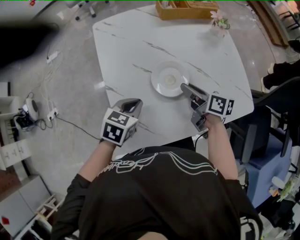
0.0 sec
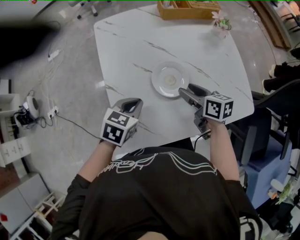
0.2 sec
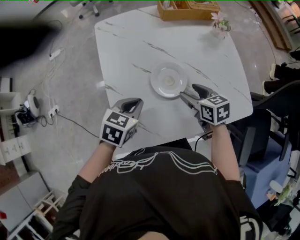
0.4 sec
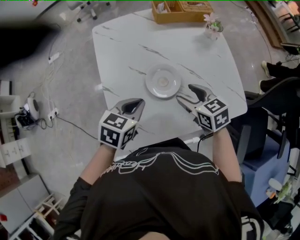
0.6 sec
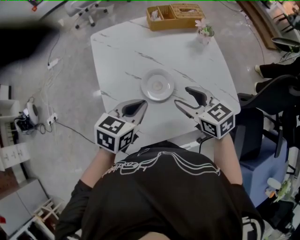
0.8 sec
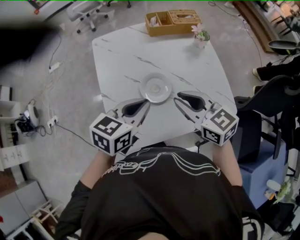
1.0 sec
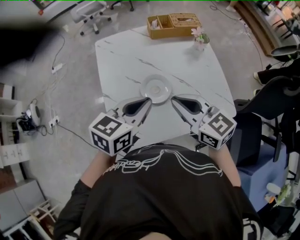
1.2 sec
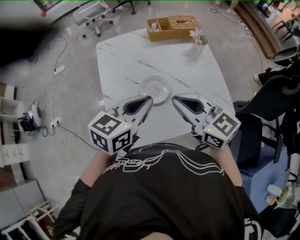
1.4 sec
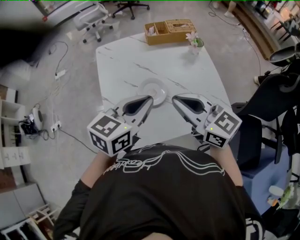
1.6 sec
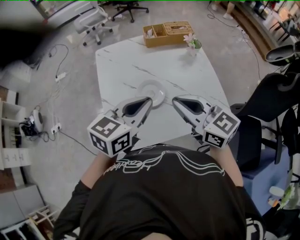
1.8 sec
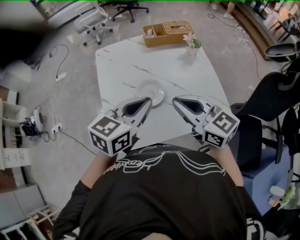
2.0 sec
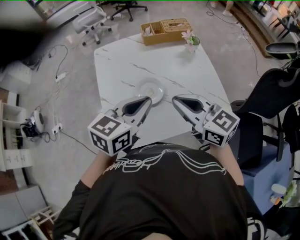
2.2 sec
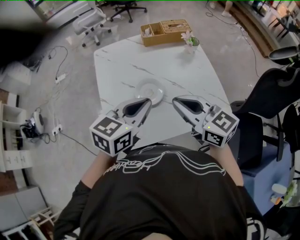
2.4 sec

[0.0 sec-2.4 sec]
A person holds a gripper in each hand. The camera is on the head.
0.0 sec to 1.2 sec: The right gripper shifts some 20 cm upward, rotates around the line of its fingers by about 50 degrees, counterclockwise from behind, and closes up; the left gripper moves upward and to the right, about 20 cm, and swivels about 30 degrees.
1.2 sec to 2.4 sec: The right gripper changes place by some 5 cm.

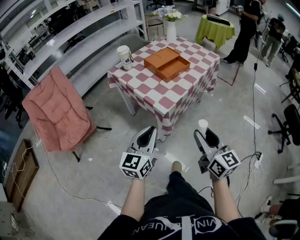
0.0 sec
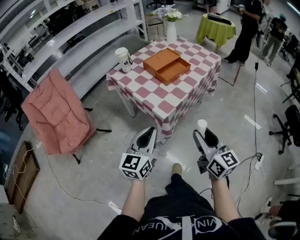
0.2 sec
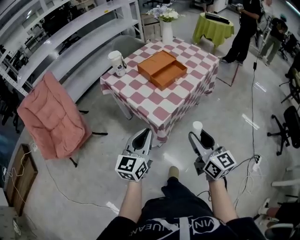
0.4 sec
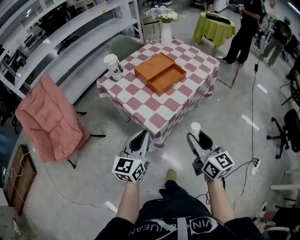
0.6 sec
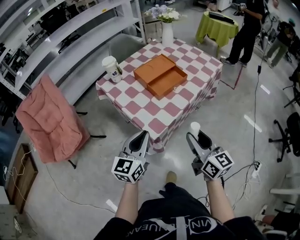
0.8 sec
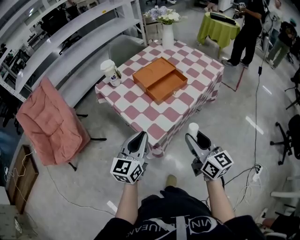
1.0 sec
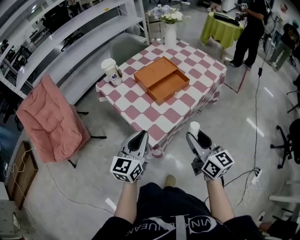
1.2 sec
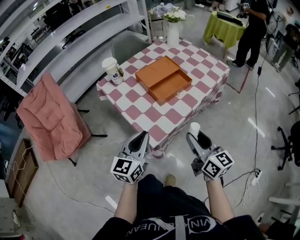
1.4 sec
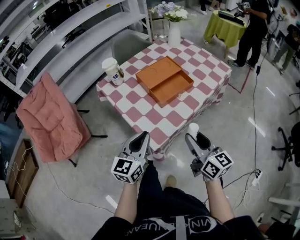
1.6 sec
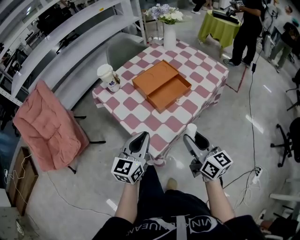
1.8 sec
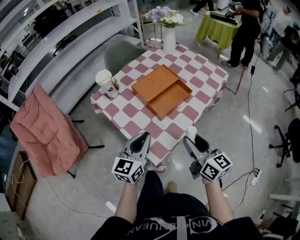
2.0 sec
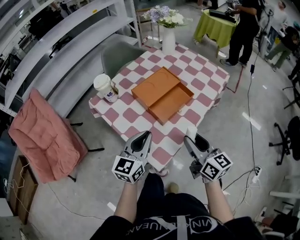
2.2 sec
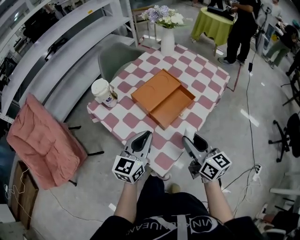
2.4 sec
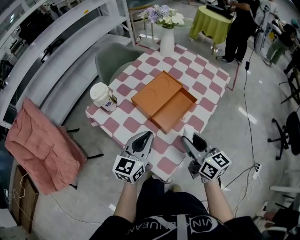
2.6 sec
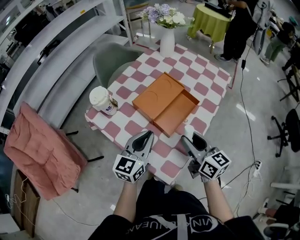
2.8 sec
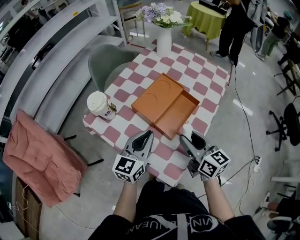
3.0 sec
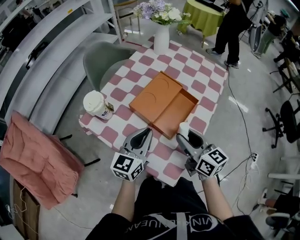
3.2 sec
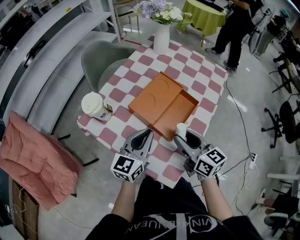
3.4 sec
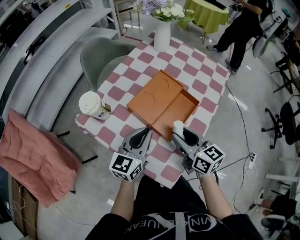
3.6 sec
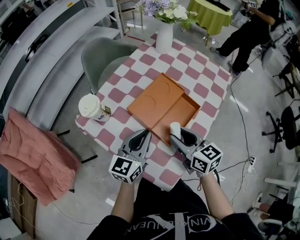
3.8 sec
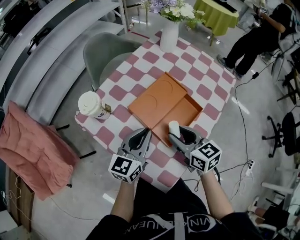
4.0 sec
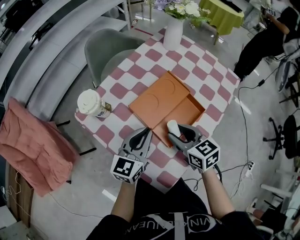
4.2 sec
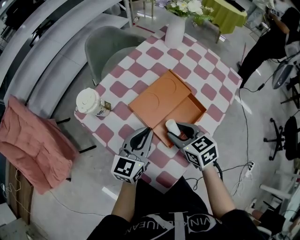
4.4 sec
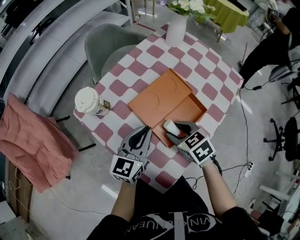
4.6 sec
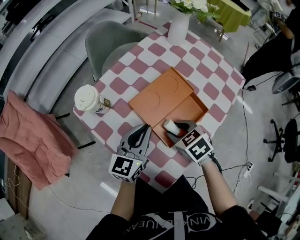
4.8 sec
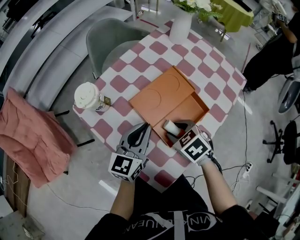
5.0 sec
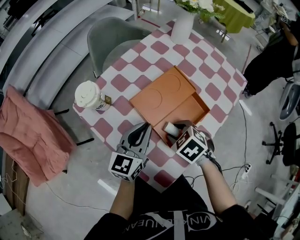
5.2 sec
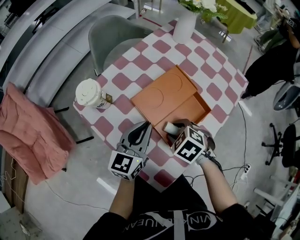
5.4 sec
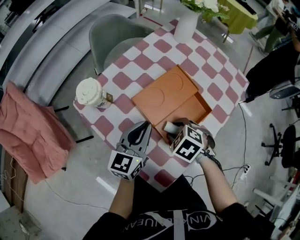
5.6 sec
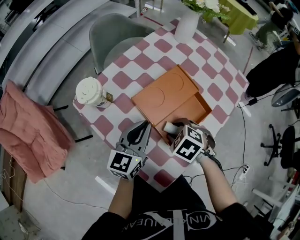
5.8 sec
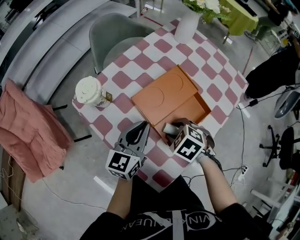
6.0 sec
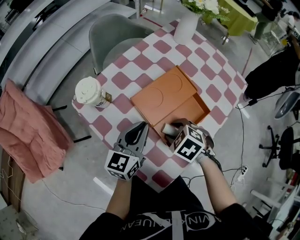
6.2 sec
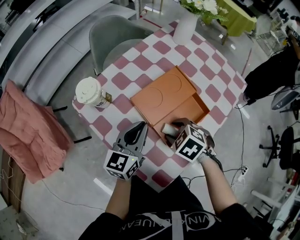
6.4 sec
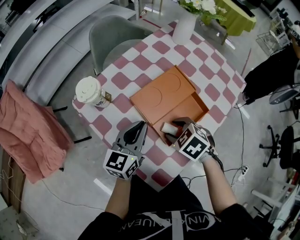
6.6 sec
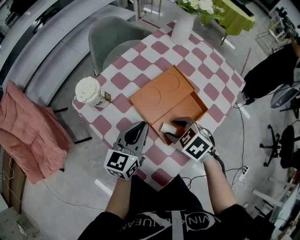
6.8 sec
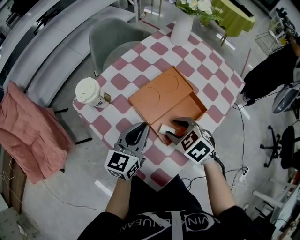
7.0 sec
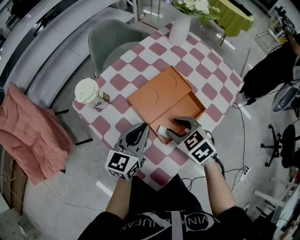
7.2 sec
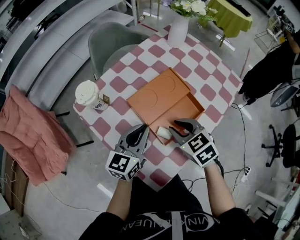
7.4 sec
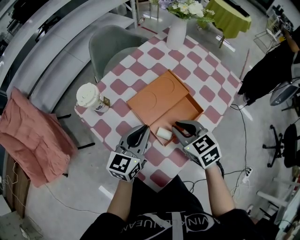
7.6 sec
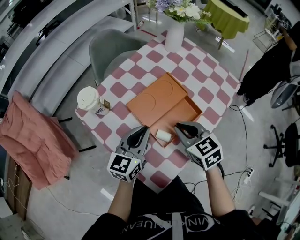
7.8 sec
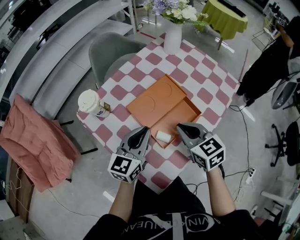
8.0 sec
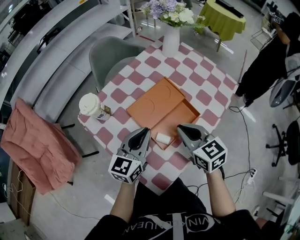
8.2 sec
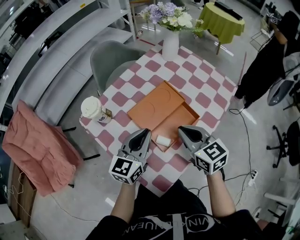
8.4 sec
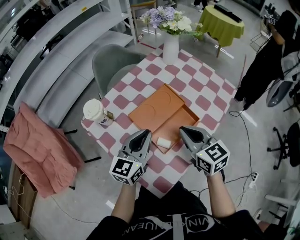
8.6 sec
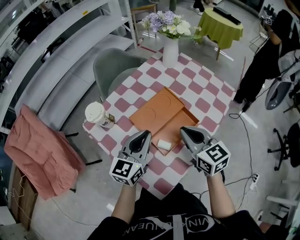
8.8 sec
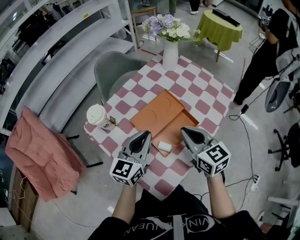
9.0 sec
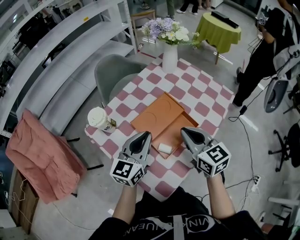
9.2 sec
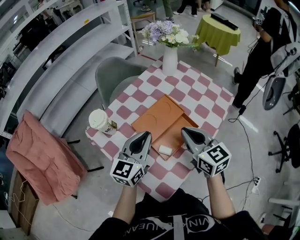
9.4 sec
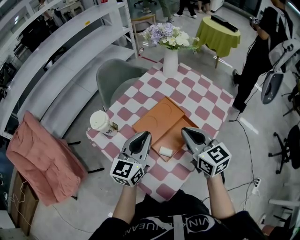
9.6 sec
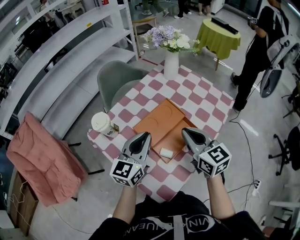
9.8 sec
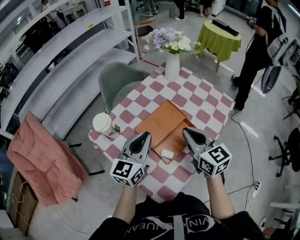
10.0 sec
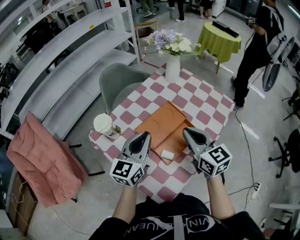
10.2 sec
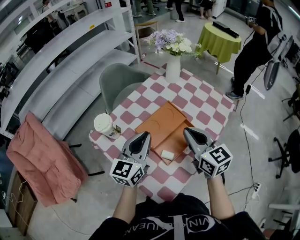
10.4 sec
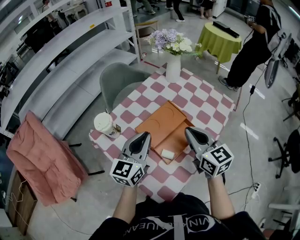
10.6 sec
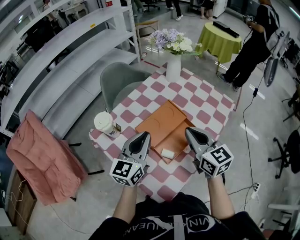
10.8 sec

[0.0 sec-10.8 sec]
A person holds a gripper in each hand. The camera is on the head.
0.0 sec to 1.6 sec: Both grippers move forward, some 20 cm.
1.6 sec to 3.0 sec: The left gripper heads forward, covering some 20 cm. Meanwhile the right gripper shifts about 20 cm forward and to the left.
3.0 sec to 4.6 sec: The right gripper goes approximately 10 cm downward and forward, and tilts its fingers about 40 degrees downward. The left gripper heads forward, covering approximately 5 cm.
4.6 sec to 6.2 sec: The right gripper changes its angle by roughly 30 degrees.
6.2 sec to 7.8 sec: The right gripper goes some 10 cm upward and to the right, tilts its fingers roughly 30 degrees upward, and closes.
7.8 sec to 9.2 sec: Both grippers move upward, approximately 10 cm. The right gripper changes its angle by about 20 degrees.
9.2 sec to 10.8 sec: The grippers make only small movements.

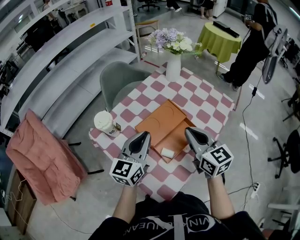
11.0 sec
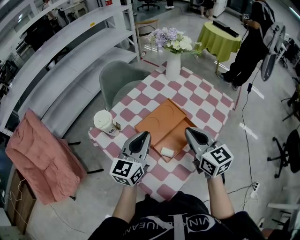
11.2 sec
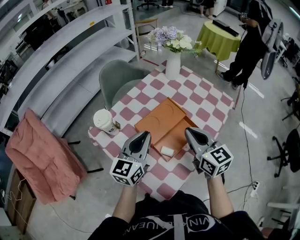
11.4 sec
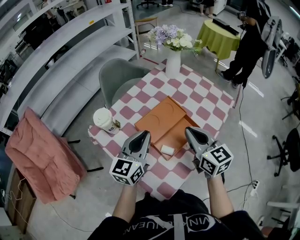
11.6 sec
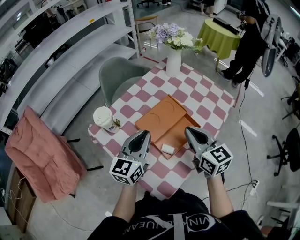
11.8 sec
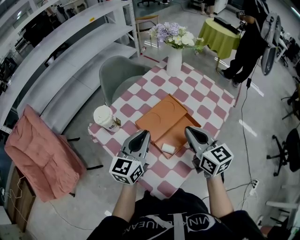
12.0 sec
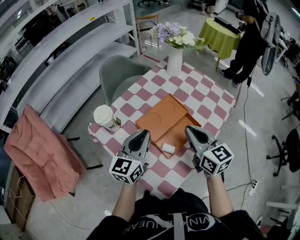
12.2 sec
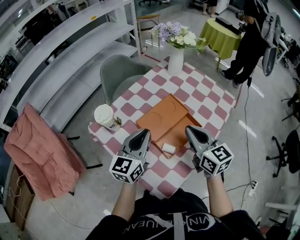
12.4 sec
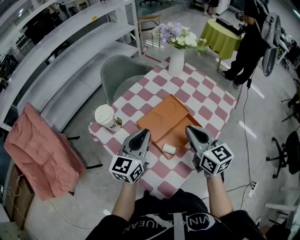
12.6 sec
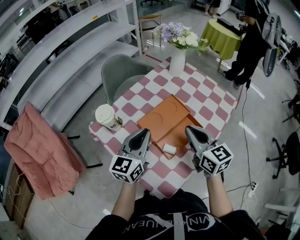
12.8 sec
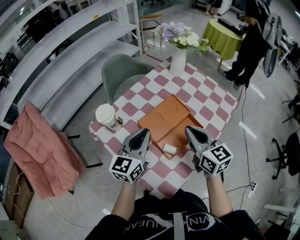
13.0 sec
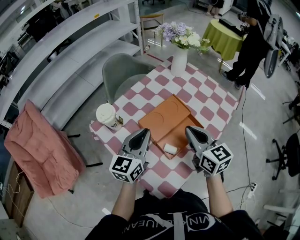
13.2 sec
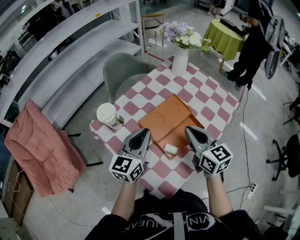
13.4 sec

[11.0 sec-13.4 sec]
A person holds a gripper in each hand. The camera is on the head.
11.0 sec to 13.4 sec: The grippers stay close to where they were, moving slightly.

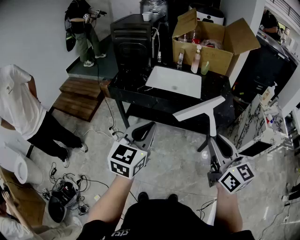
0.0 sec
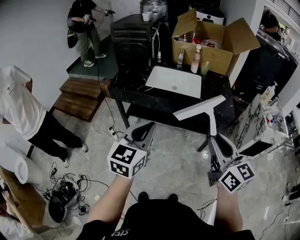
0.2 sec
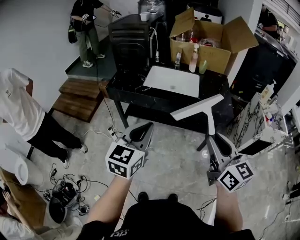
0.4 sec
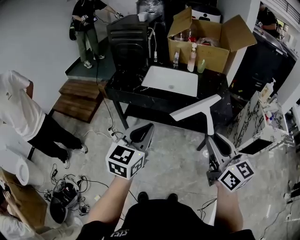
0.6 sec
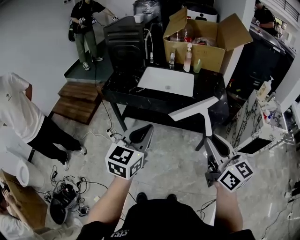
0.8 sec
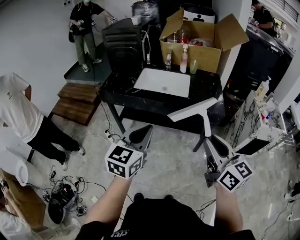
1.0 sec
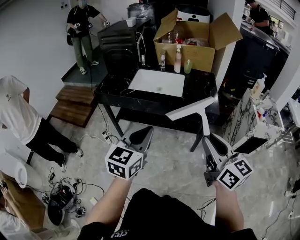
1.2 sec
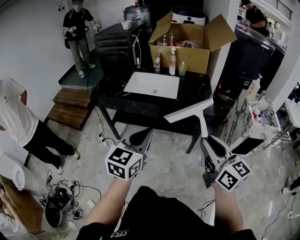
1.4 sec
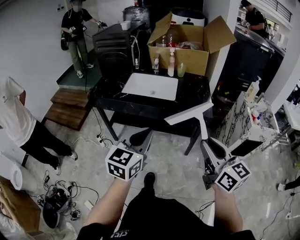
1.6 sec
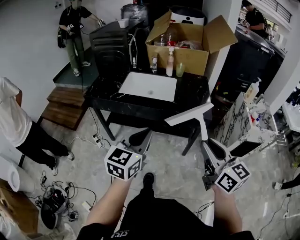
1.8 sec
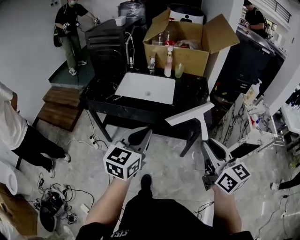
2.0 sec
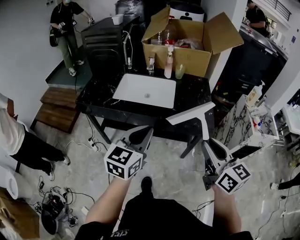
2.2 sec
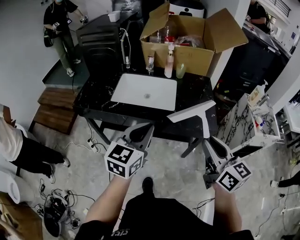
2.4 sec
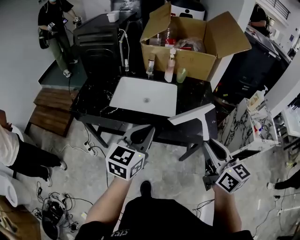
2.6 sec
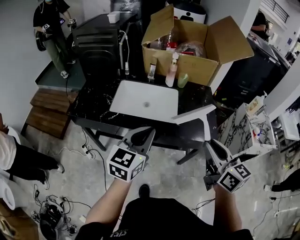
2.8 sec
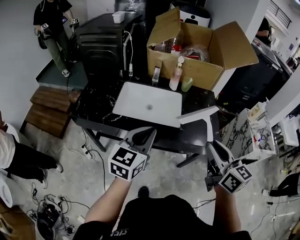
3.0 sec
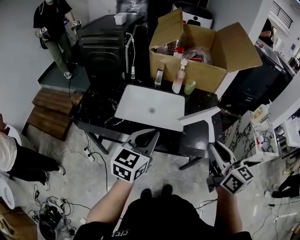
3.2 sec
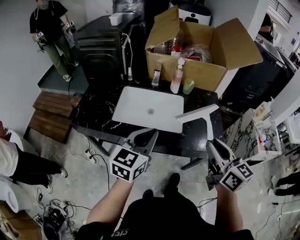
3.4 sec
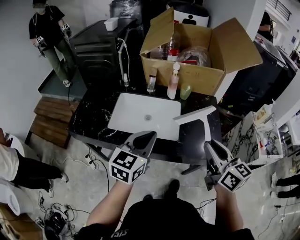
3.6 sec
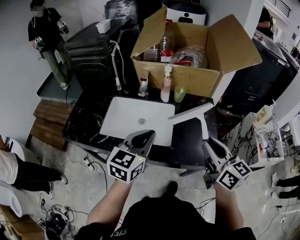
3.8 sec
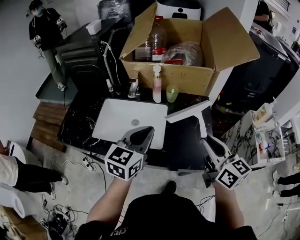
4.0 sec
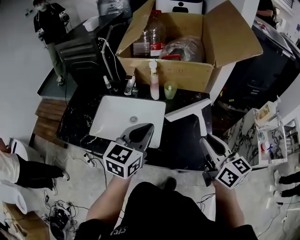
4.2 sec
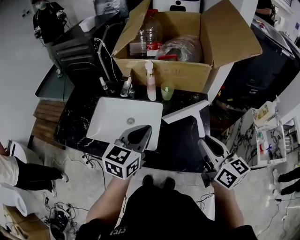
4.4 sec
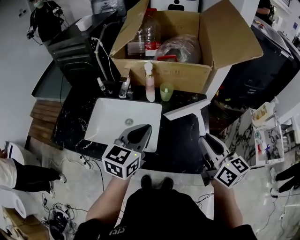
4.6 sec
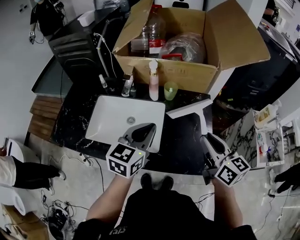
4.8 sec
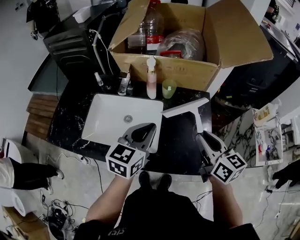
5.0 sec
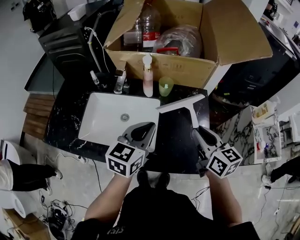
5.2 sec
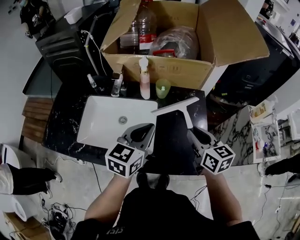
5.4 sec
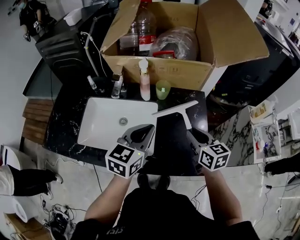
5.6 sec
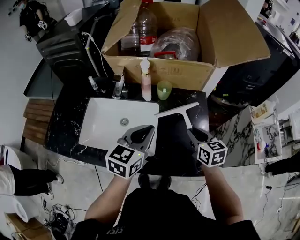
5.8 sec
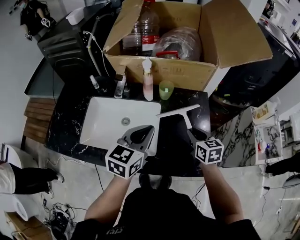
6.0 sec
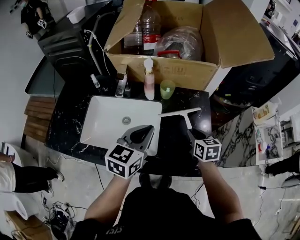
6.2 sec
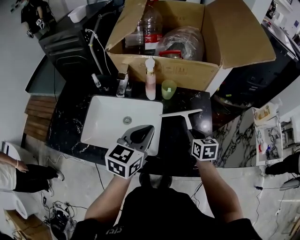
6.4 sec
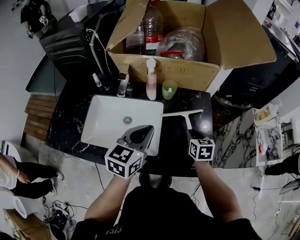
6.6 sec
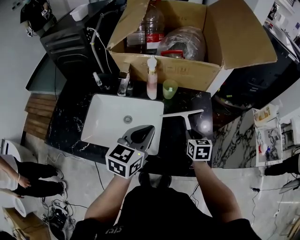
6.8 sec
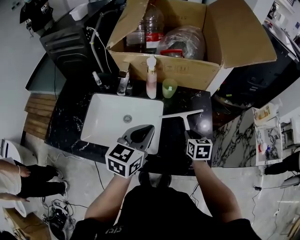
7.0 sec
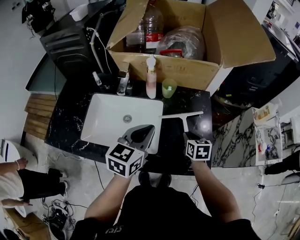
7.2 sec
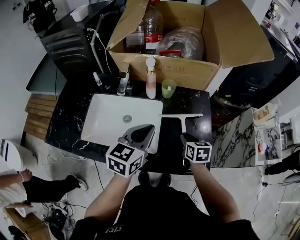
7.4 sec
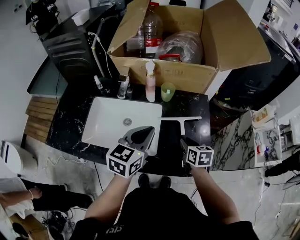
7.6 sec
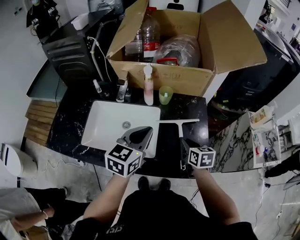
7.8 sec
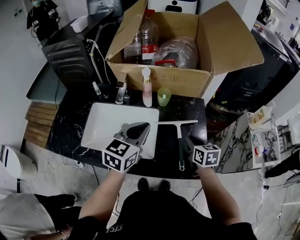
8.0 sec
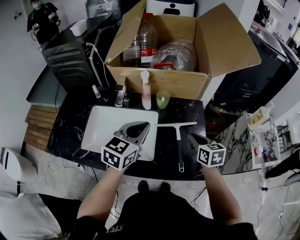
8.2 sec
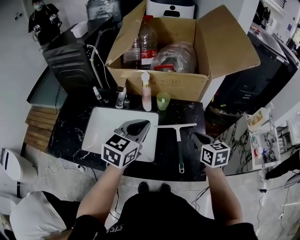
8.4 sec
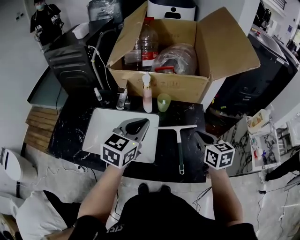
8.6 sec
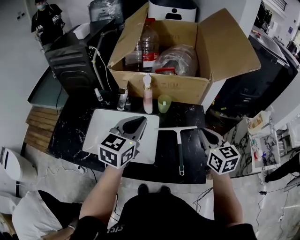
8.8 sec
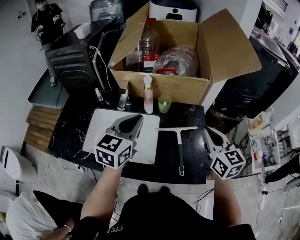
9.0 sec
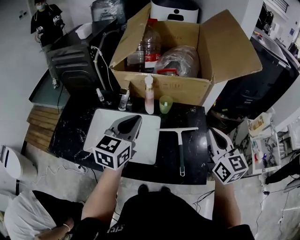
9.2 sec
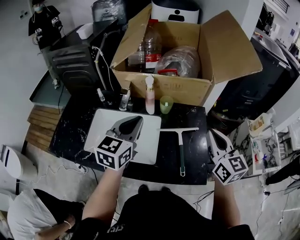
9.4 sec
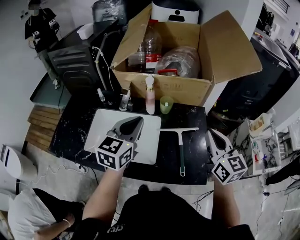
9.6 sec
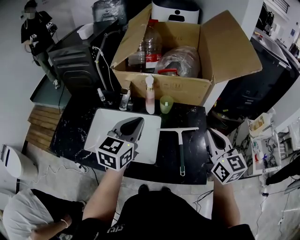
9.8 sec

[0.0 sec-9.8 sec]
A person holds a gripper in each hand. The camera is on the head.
0.0 sec to 1.4 sec: Both grippers travel together to the right, about 15 cm.
1.4 sec to 2.8 sec: The grippers both shift forward by roughly 25 cm.
2.8 sec to 4.2 sec: The grippers both shift forward and to the right by about 25 cm.
4.2 sec to 5.6 sec: The right gripper goes roughly 15 cm downward and forward; the left gripper shifts about 5 cm forward.
5.6 sec to 7.0 sec: The right gripper moves downward, roughly 10 cm, and turns by roughly 20 degrees.
7.0 sec to 8.4 sec: The left gripper ends up approximately 5 cm from where it was. The right gripper heads upward, covering some 10 cm.
8.4 sec to 9.8 sec: The right gripper goes roughly 15 cm upward, and rotates approximately 30 degrees. Meanwhile the left gripper ends up about 5 cm from where it was.
